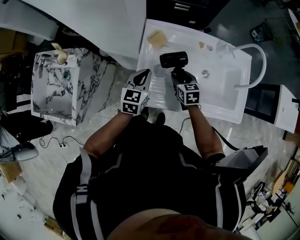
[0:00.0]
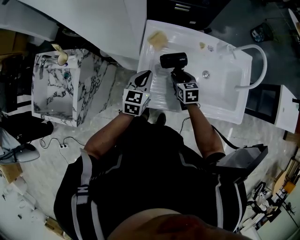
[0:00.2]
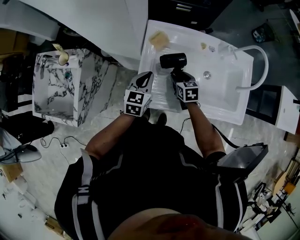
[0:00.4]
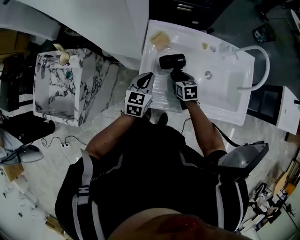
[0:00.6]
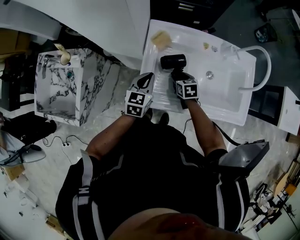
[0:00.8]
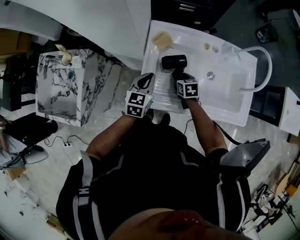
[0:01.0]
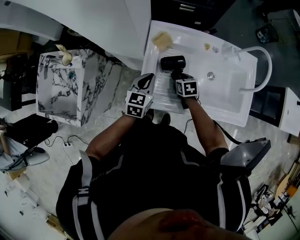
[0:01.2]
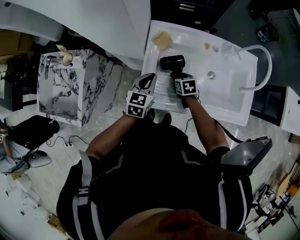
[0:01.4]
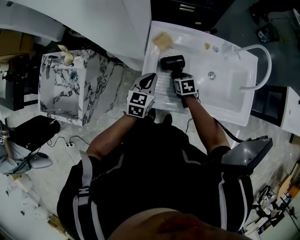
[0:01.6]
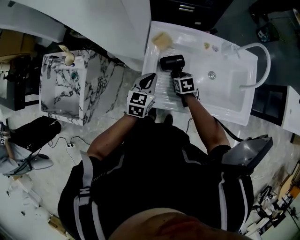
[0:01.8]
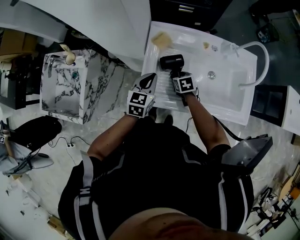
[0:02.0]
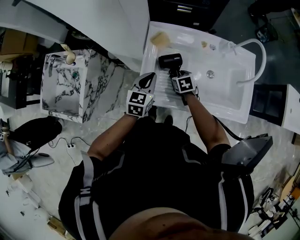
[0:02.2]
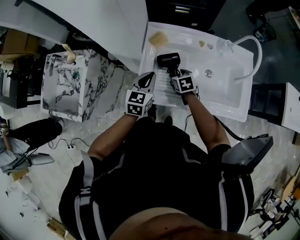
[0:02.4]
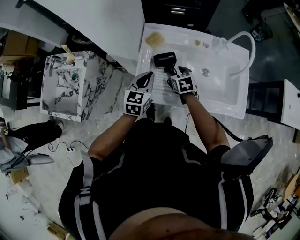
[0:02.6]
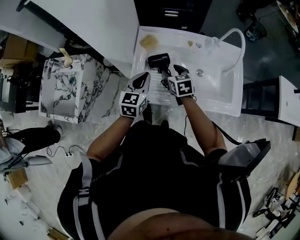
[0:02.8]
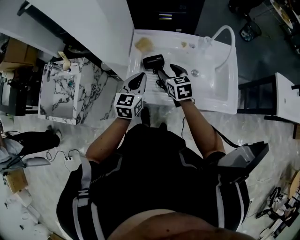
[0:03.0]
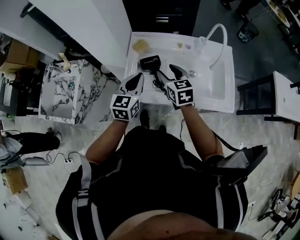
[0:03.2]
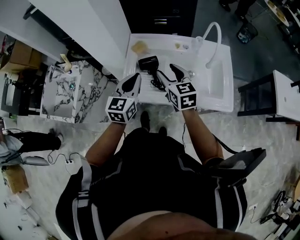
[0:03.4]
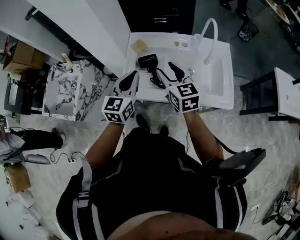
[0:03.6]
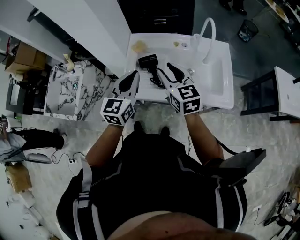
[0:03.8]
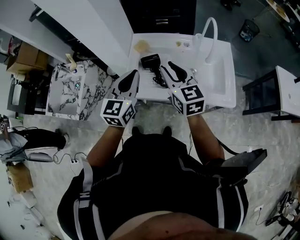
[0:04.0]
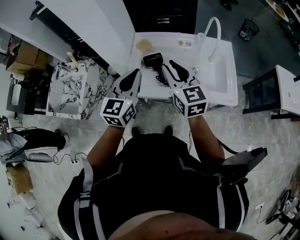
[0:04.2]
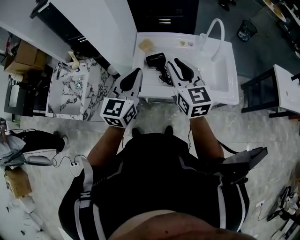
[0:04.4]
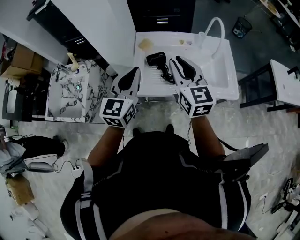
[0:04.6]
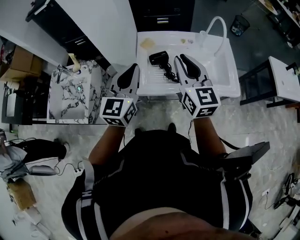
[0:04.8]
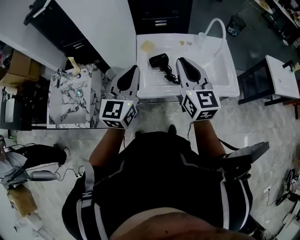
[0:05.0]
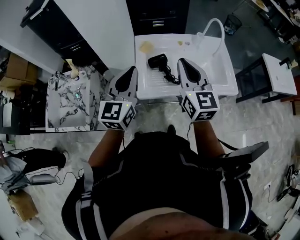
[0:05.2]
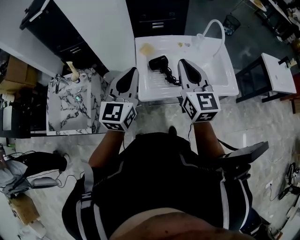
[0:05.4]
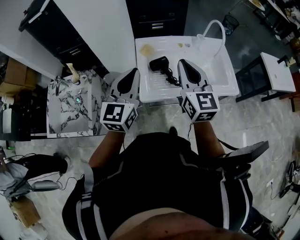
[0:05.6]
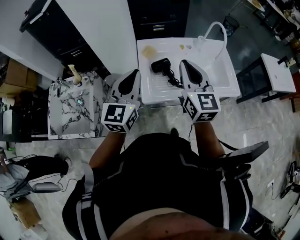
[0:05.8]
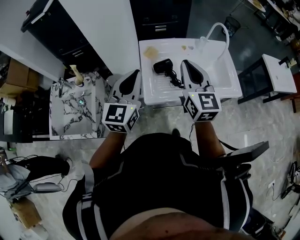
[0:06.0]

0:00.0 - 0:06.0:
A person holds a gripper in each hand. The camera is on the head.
0:00.0 - 0:01.6: The right gripper moves downward, about 5 cm.
0:01.6 - 0:03.0: The left gripper travels upward and backward by about 10 cm. The right gripper moves upward, about 20 cm, and rotates roughly 30 degrees.
0:03.0 - 0:04.4: The grippers both shift upward and backward by roughly 20 cm. The right gripper swivels about 30 degrees, and closes.
0:04.4 - 0:06.0: The right gripper shifts approximately 5 cm to the left, and closes; the left gripper moves to the left, approximately 10 cm.

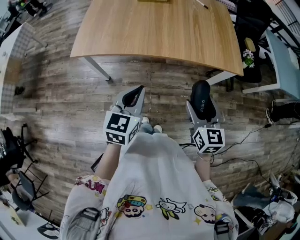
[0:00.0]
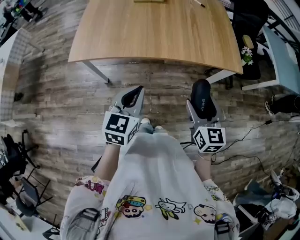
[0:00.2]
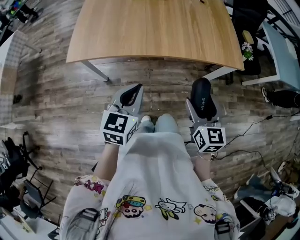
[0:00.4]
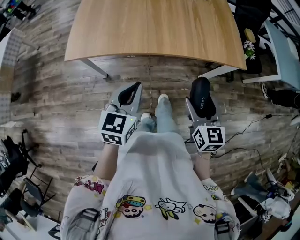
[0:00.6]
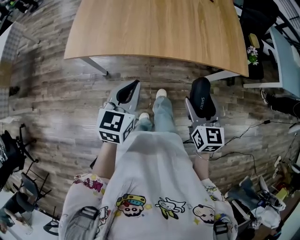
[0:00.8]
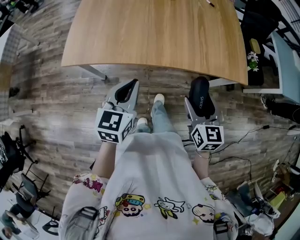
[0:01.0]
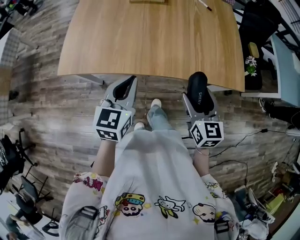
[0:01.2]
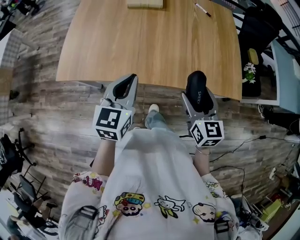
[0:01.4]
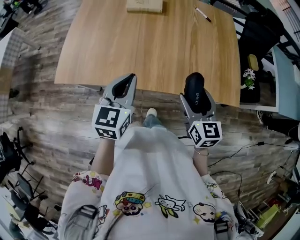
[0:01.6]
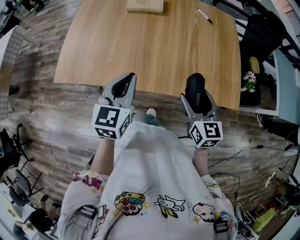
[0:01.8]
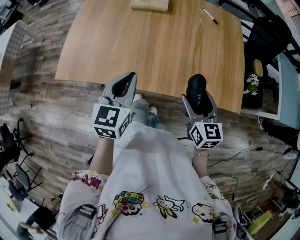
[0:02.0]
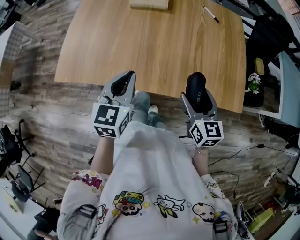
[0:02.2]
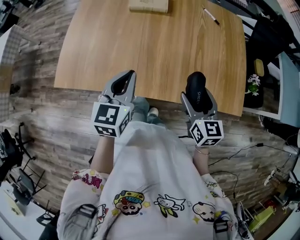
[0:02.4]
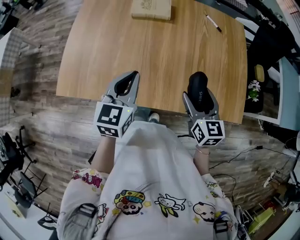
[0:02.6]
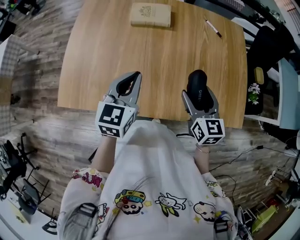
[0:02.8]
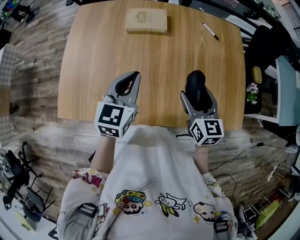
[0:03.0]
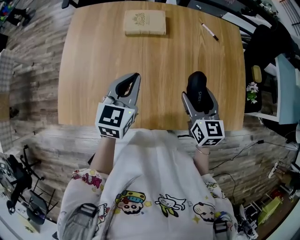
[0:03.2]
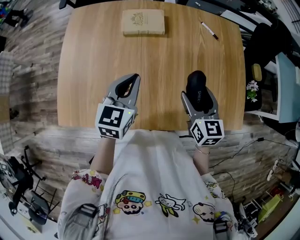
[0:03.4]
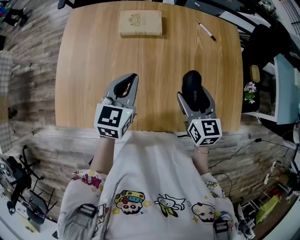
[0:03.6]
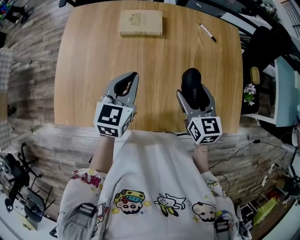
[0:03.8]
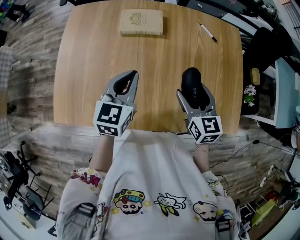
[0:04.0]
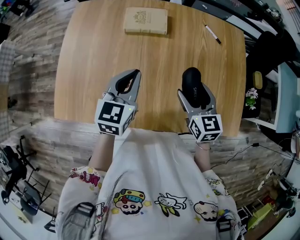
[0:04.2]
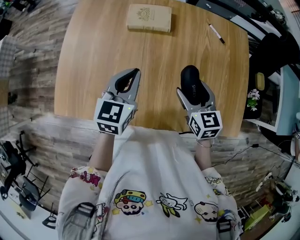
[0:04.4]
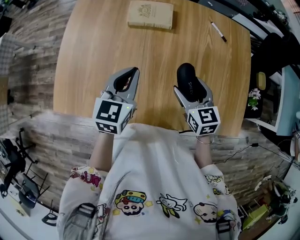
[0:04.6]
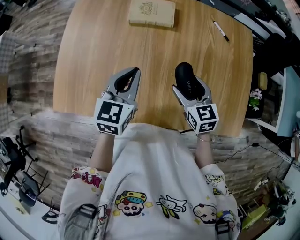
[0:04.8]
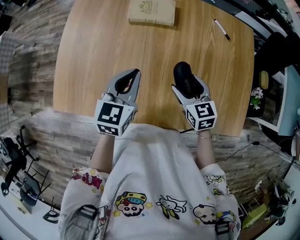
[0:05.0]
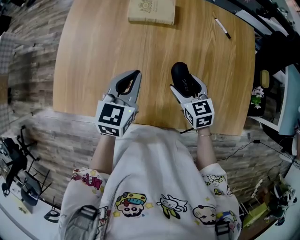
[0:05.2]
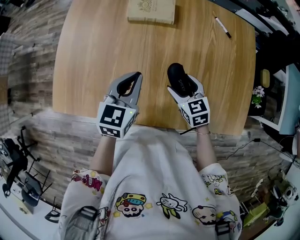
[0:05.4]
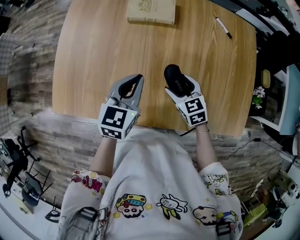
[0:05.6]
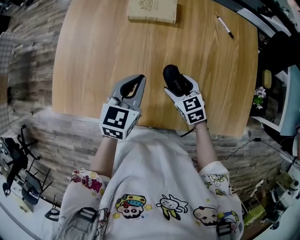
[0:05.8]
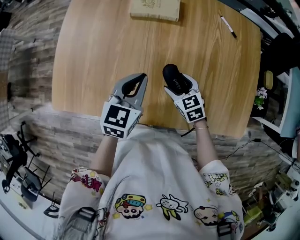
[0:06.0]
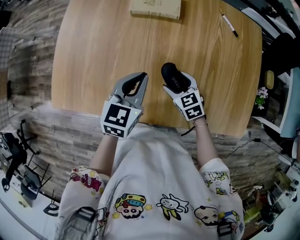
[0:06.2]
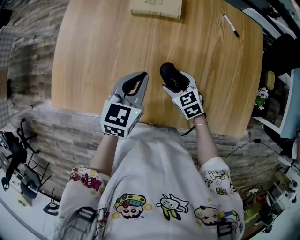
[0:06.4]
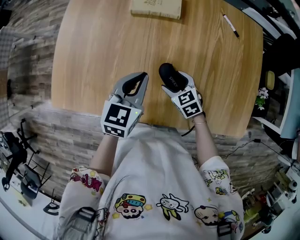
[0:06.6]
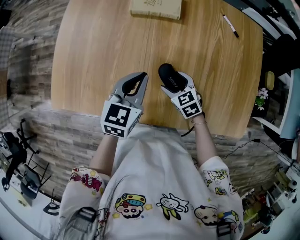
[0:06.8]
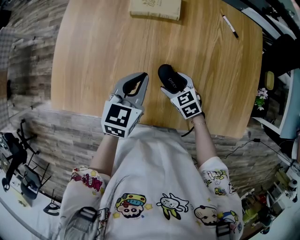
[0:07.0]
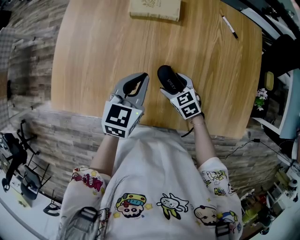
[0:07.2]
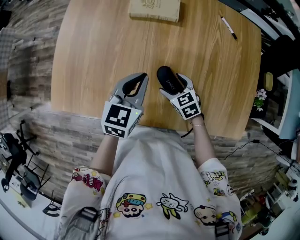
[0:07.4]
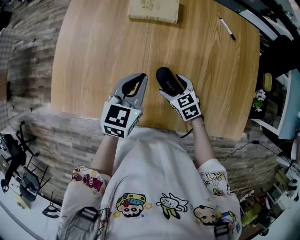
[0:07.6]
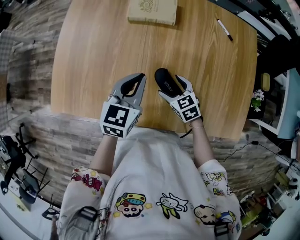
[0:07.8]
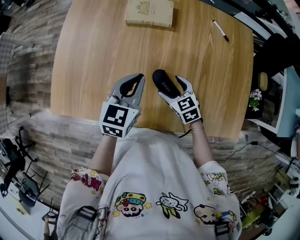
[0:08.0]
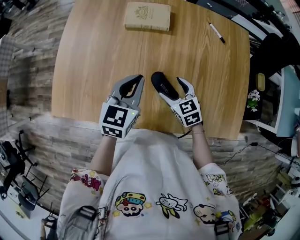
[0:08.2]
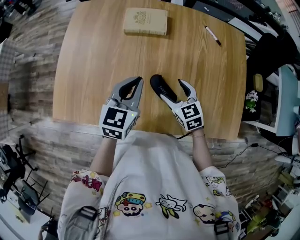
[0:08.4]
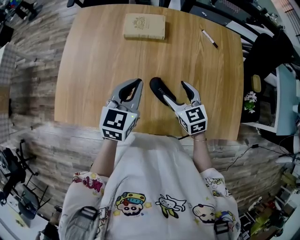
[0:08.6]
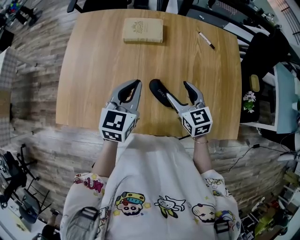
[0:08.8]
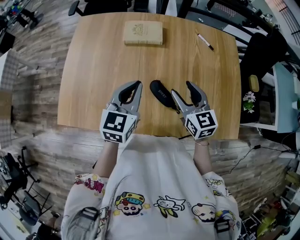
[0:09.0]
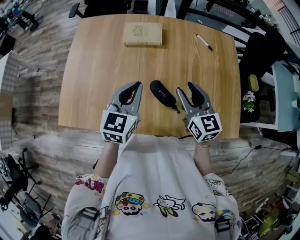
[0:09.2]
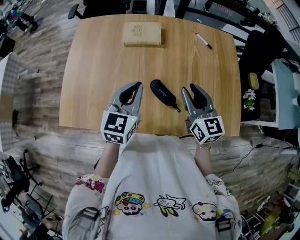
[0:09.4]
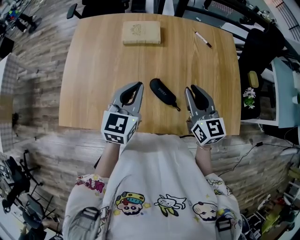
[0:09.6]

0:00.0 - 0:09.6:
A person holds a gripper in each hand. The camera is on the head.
0:00.0 - 0:01.6: The two grippers go approximately 25 cm forward.
0:01.6 - 0:03.2: The grippers both shift forward by about 20 cm.
0:03.2 - 0:04.8: The right gripper is displaced downward by some 5 cm, and swivels roughly 20 degrees.
0:04.8 - 0:06.4: The left gripper goes about 5 cm downward. Meanwhile the right gripper shifts some 15 cm downward, and changes its angle by about 20 degrees.
0:06.4 - 0:08.0: The grippers stay close to where they were, moving slightly.
0:08.0 - 0:09.6: The right gripper travels upward by roughly 20 cm, points its fingers about 30 degrees further upward, and closes. The left gripper travels upward by approximately 5 cm.

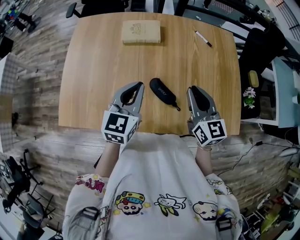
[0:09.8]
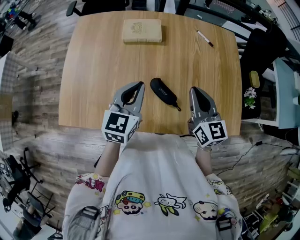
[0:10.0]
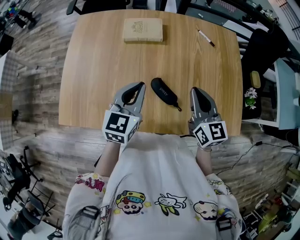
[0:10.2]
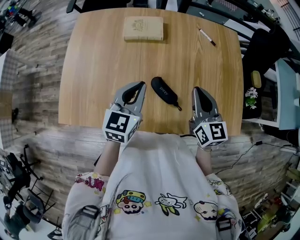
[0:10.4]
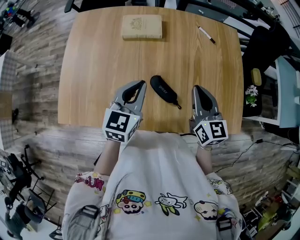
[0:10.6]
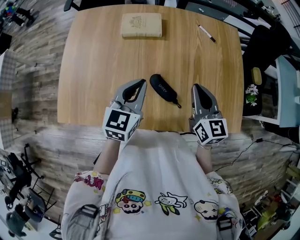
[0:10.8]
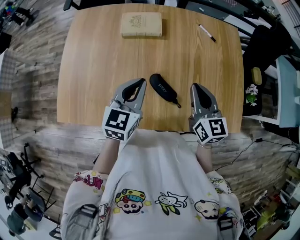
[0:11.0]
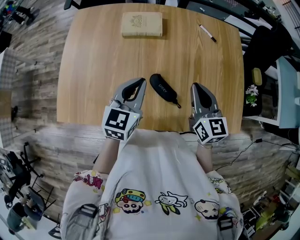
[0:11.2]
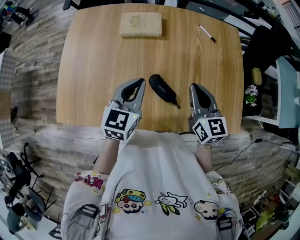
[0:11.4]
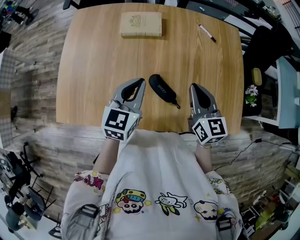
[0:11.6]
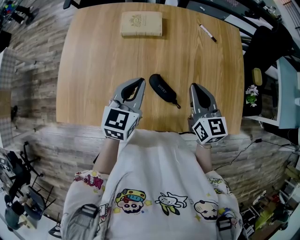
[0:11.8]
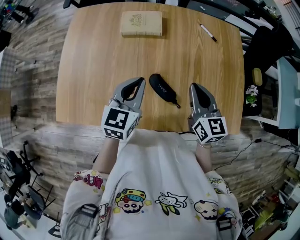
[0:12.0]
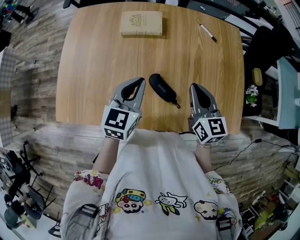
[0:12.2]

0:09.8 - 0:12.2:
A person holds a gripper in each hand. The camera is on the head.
0:09.8 - 0:11.0: The grippers move only a little.
0:11.0 - 0:12.2: The two grippers keep their place.

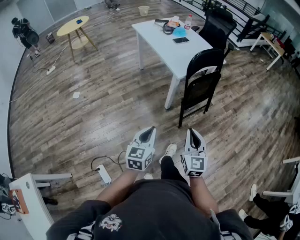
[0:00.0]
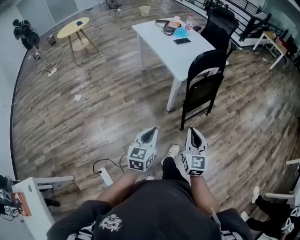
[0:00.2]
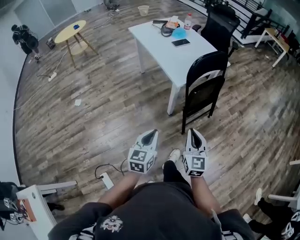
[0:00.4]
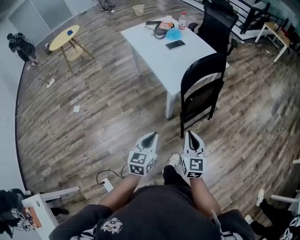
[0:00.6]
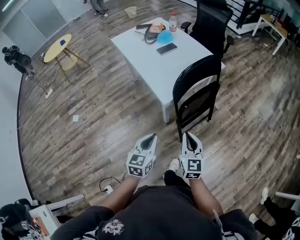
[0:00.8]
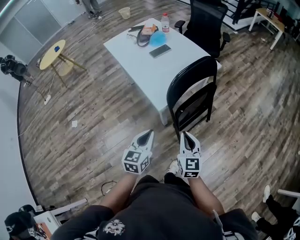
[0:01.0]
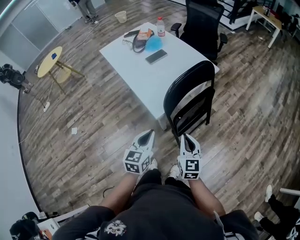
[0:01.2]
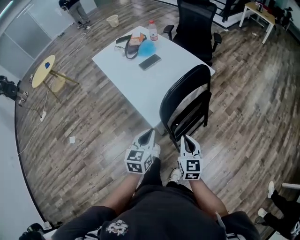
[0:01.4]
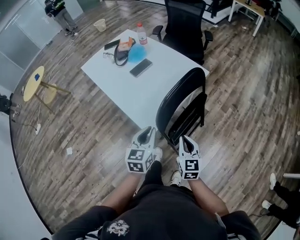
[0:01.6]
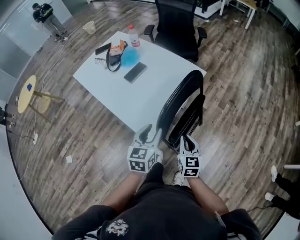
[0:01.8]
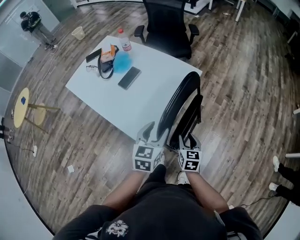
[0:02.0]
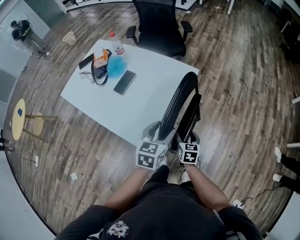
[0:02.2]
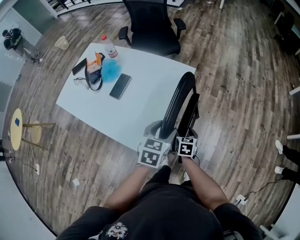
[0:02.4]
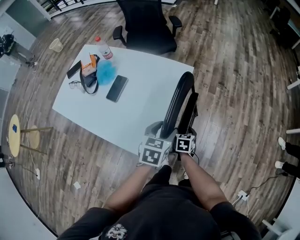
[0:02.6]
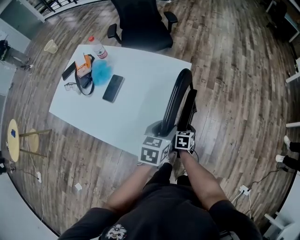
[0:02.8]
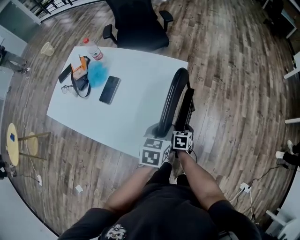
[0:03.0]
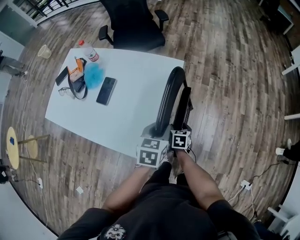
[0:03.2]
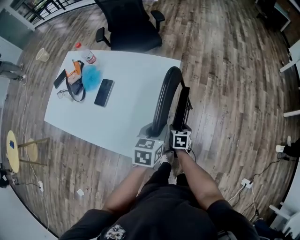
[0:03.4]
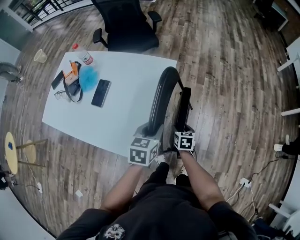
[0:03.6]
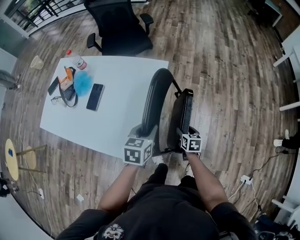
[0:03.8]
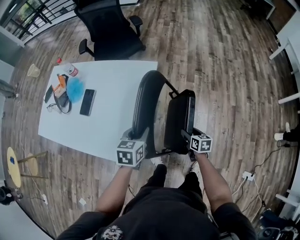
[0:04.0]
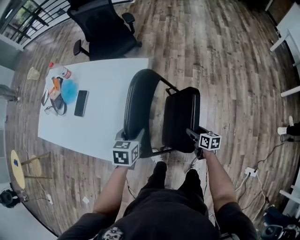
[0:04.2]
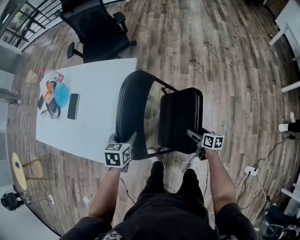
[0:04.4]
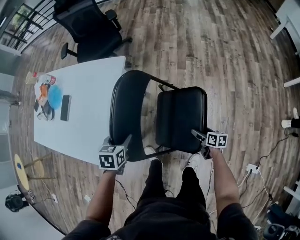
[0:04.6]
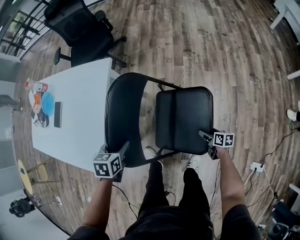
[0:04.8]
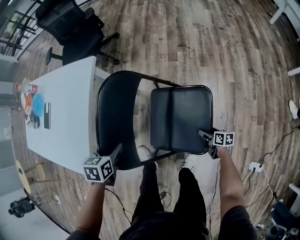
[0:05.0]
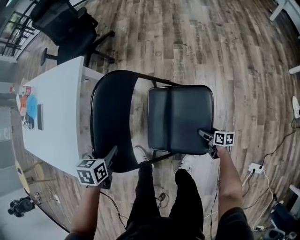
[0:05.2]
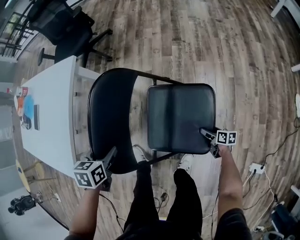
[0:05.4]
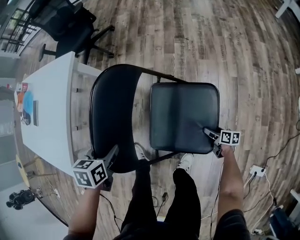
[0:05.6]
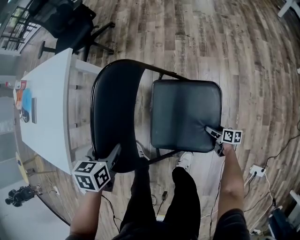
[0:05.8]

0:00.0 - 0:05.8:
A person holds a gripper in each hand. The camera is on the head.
0:00.0 - 0:01.4: Both grippers are carried forward, roughly 40 cm.
0:01.4 - 0:02.8: The right gripper shifts by about 30 cm, points its fingers about 40 degrees further downward, and opens; the left gripper shifts by roughly 25 cm, turns by roughly 40 degrees, and opens.
0:02.8 - 0:04.4: The right gripper is displaced to the right by some 30 cm, and changes its angle by roughly 40 degrees, while the left gripper goes about 10 cm downward and to the right, and closes, then reopens.
0:04.4 - 0:05.8: The right gripper moves downward and to the right, roughly 40 cm. The left gripper is displaced to the right and downward by about 25 cm.
